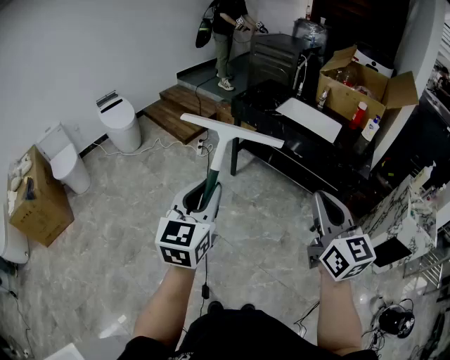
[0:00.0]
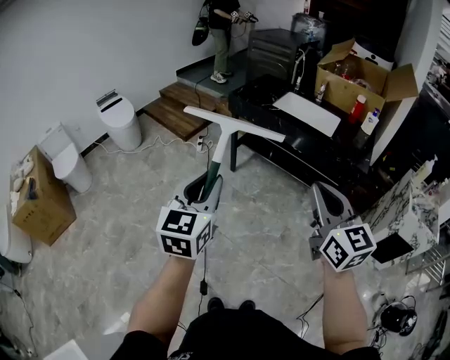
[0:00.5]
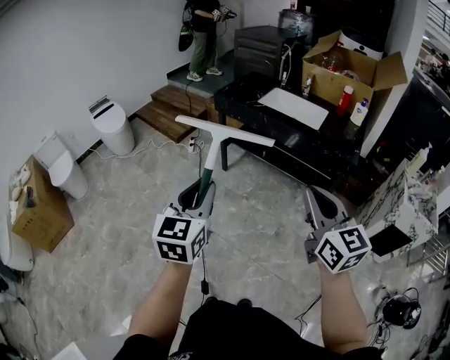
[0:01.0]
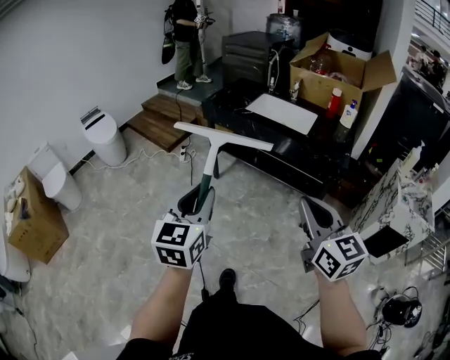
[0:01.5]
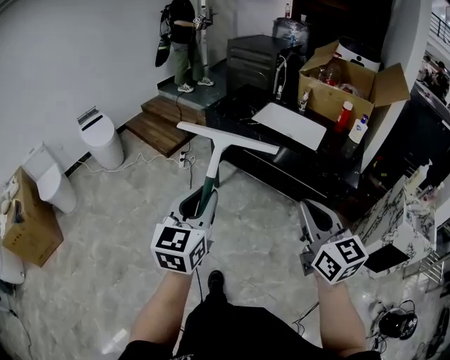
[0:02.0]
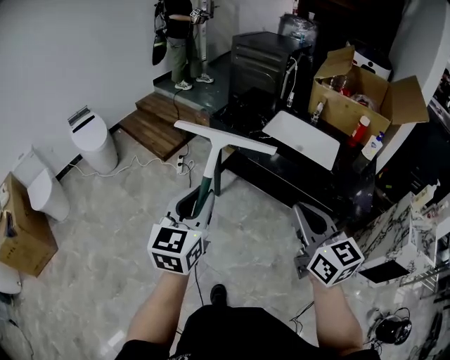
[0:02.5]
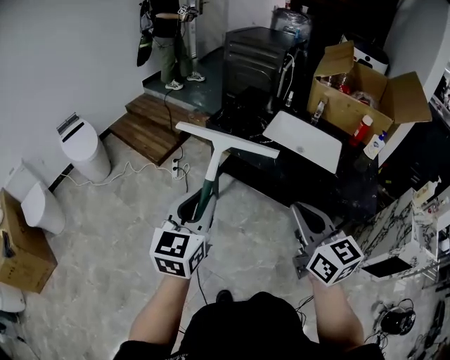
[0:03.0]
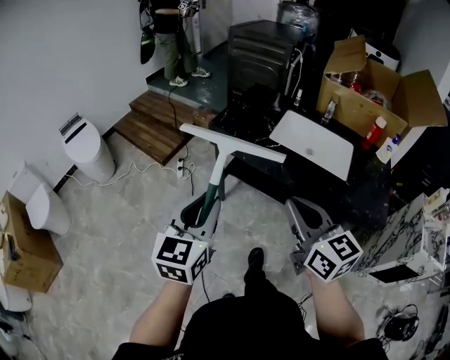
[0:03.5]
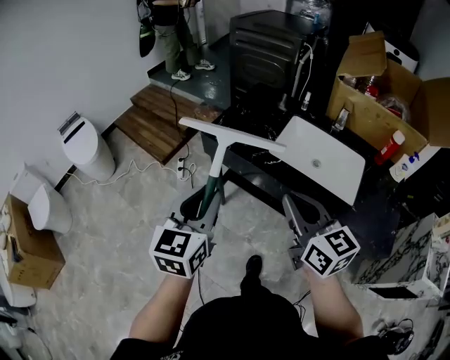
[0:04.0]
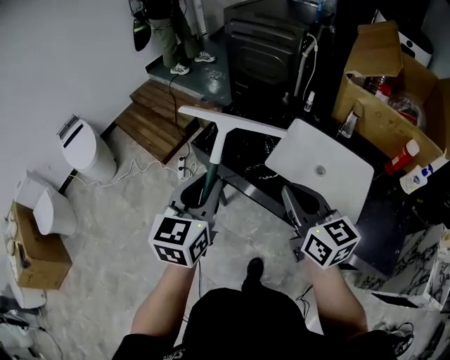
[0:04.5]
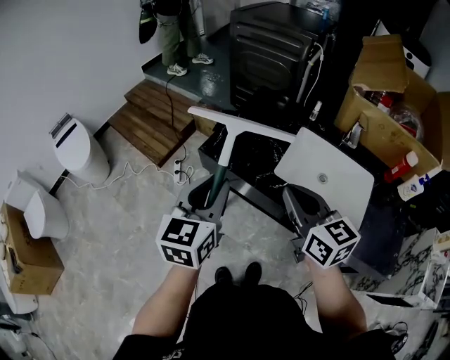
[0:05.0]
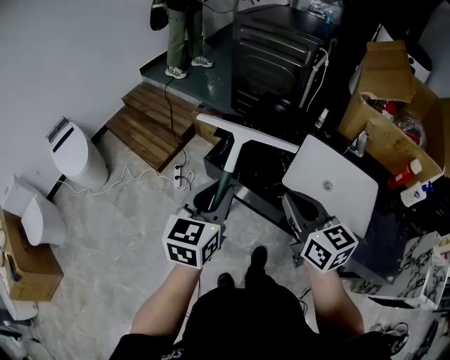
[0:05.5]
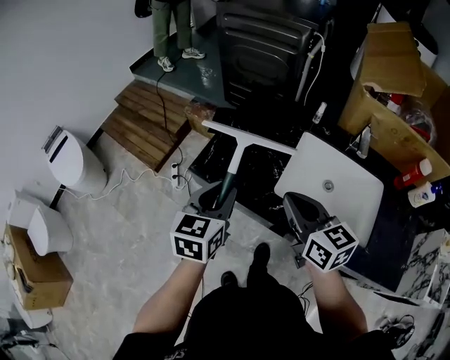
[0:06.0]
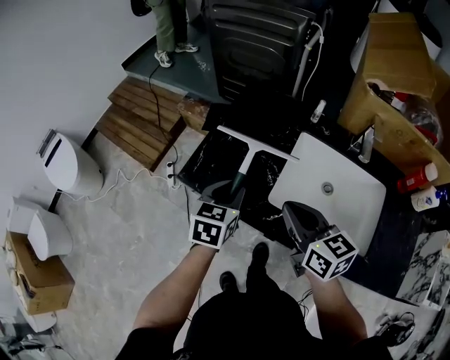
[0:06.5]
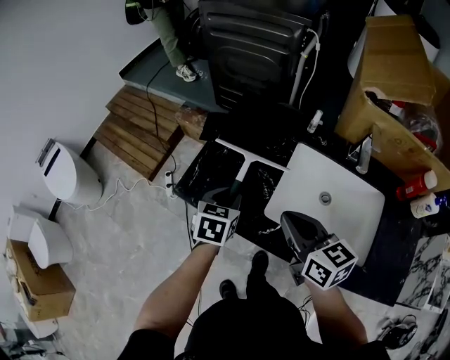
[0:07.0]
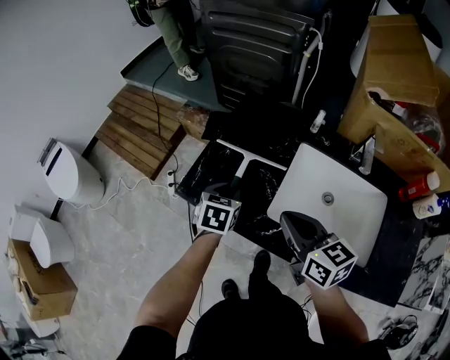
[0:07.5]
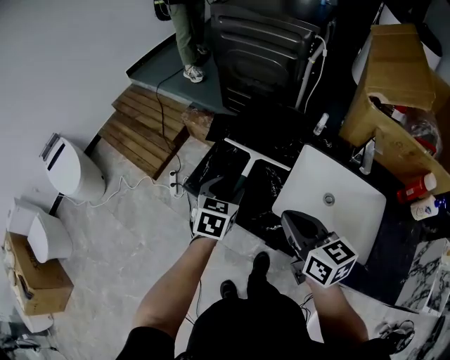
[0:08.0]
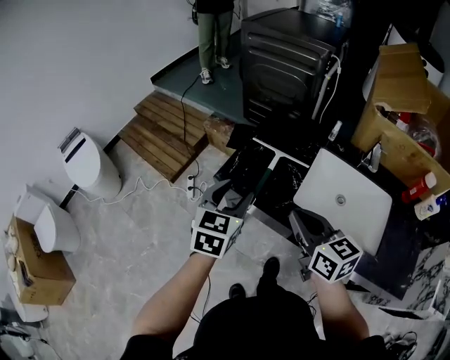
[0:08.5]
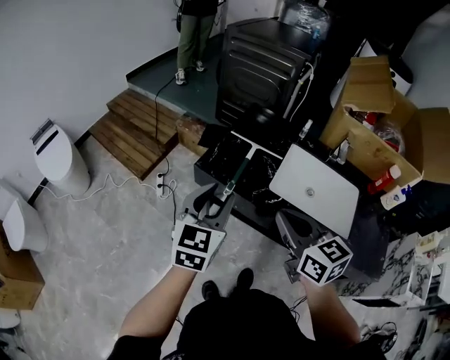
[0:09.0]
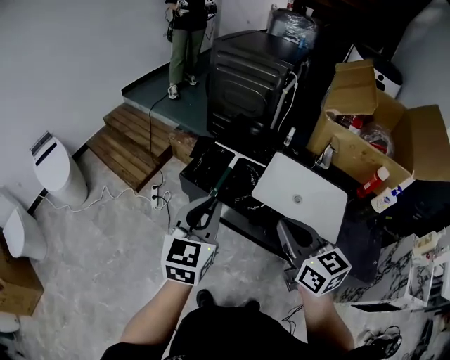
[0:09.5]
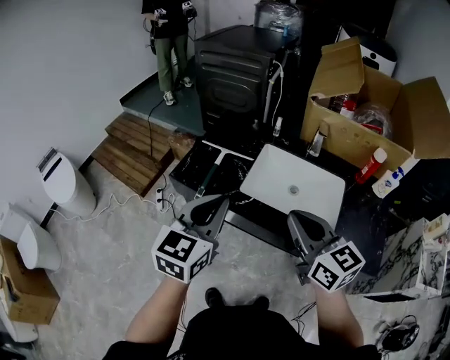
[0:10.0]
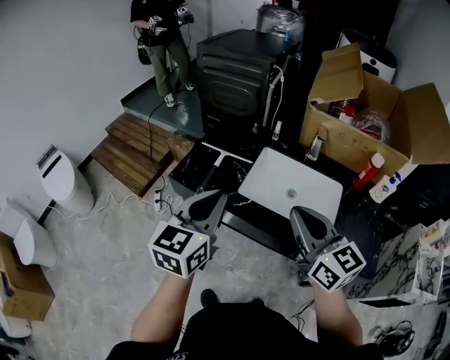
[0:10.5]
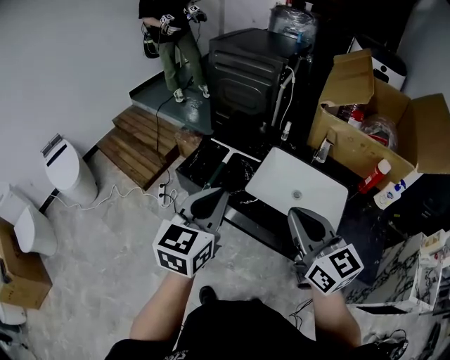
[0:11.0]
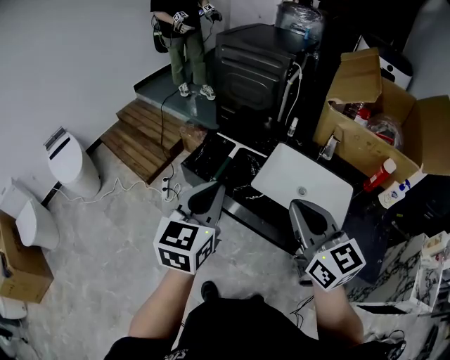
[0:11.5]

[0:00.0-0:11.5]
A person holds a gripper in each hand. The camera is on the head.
0.0 to 2.0 s: The left gripper goes approximately 15 cm to the right and forward; the right gripper travels forward and to the right by about 10 cm.
2.0 to 4.0 s: The pair of grippers is taken forward, approximately 40 cm.
4.0 to 6.0 s: The grippers both shift forward by some 25 cm.
6.0 to 7.5 s: The right gripper changes place by roughly 5 cm. Meanwhile the left gripper is displaced downward and forward by about 20 cm, and rotates approximately 20 degrees.
7.5 to 9.5 s: The left gripper moves upward and backward, about 35 cm, tilts its fingers some 40 degrees upward, and opens and closes again, while the right gripper is displaced backward and upward by some 20 cm.
9.5 to 11.5 s: The right gripper travels upward by some 5 cm.

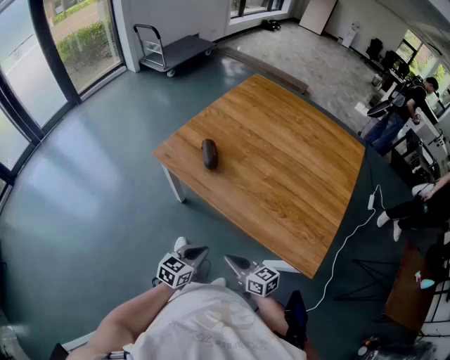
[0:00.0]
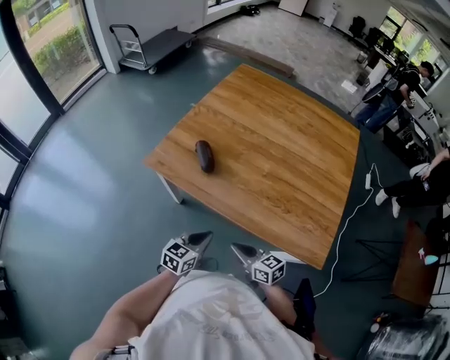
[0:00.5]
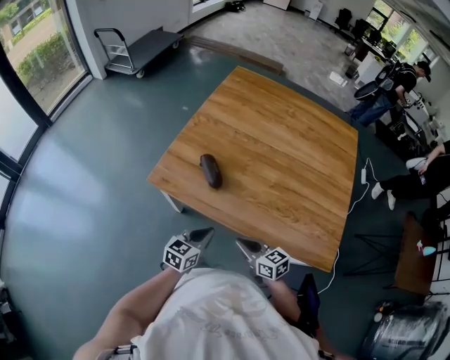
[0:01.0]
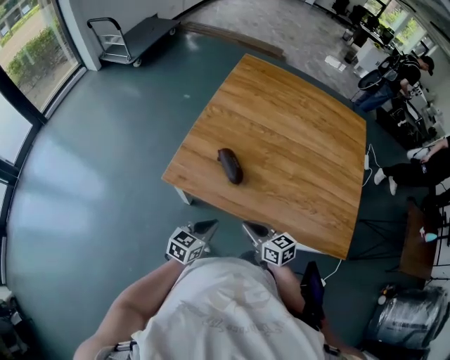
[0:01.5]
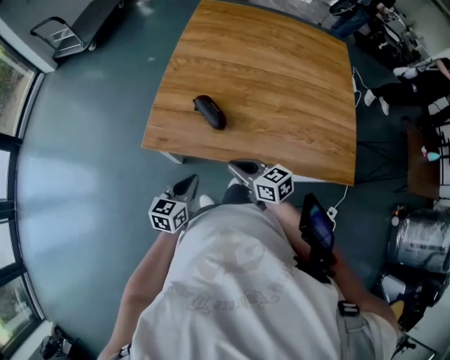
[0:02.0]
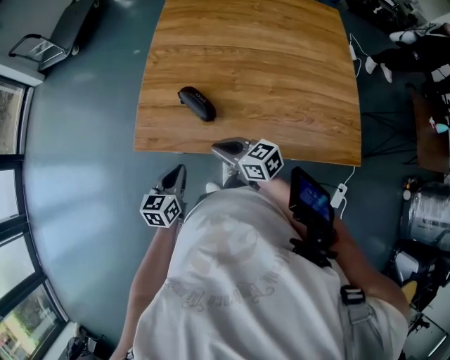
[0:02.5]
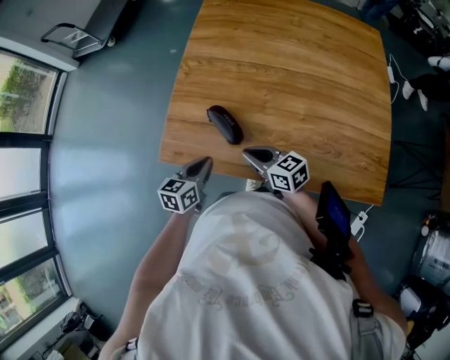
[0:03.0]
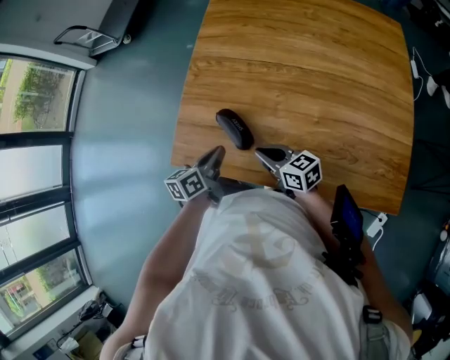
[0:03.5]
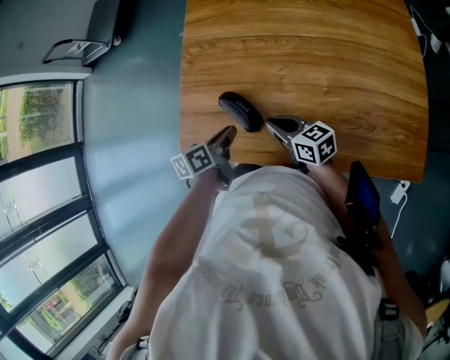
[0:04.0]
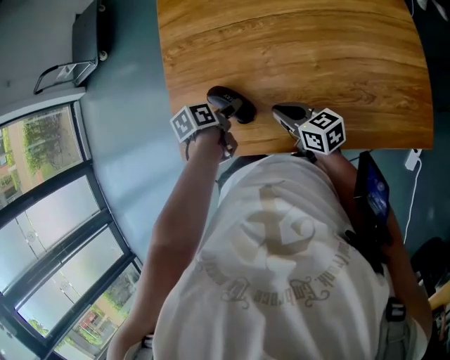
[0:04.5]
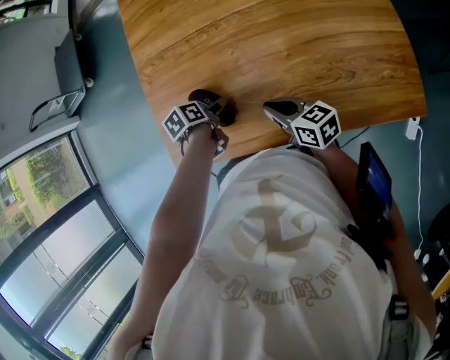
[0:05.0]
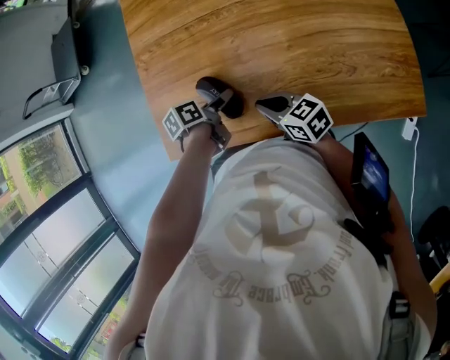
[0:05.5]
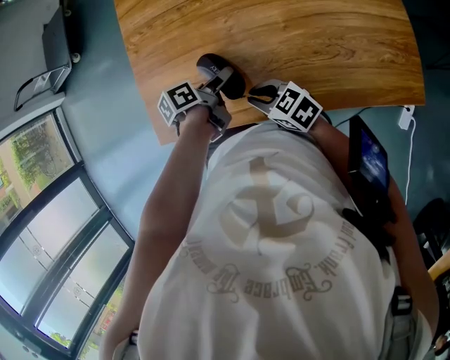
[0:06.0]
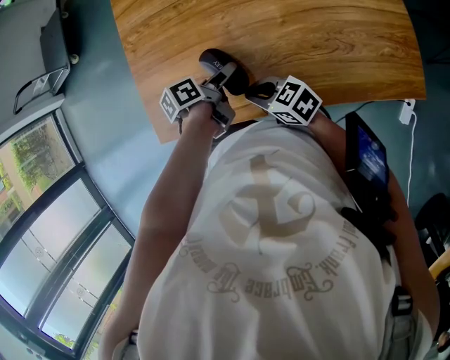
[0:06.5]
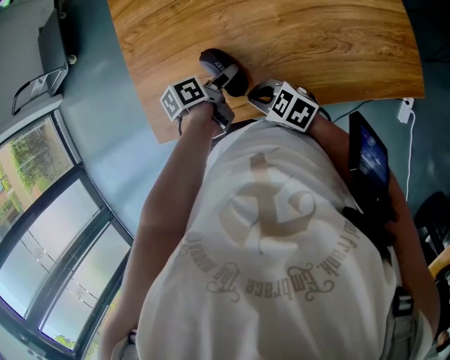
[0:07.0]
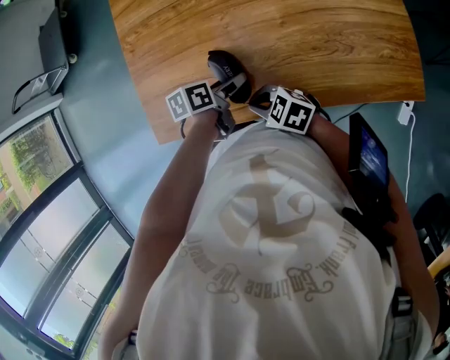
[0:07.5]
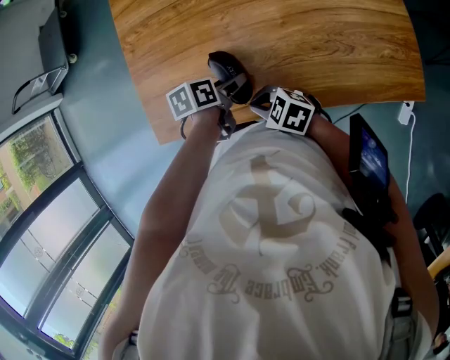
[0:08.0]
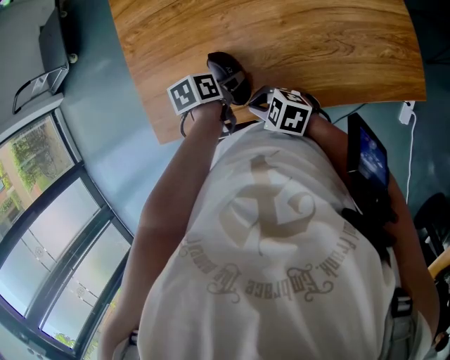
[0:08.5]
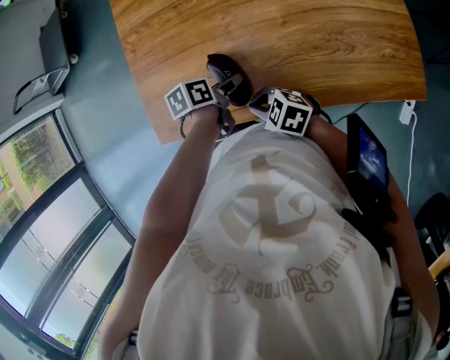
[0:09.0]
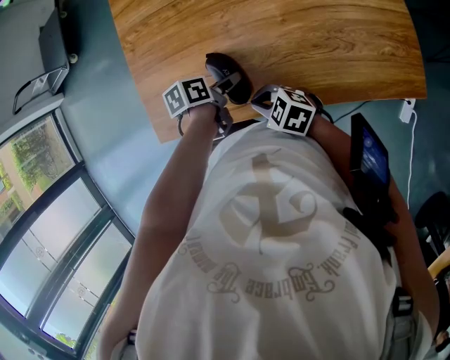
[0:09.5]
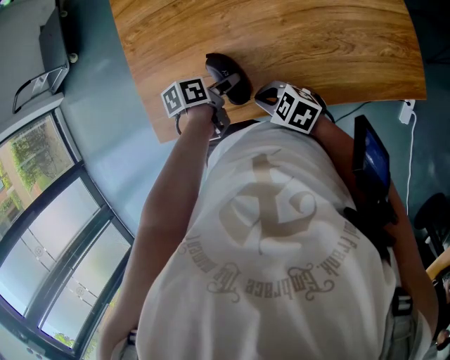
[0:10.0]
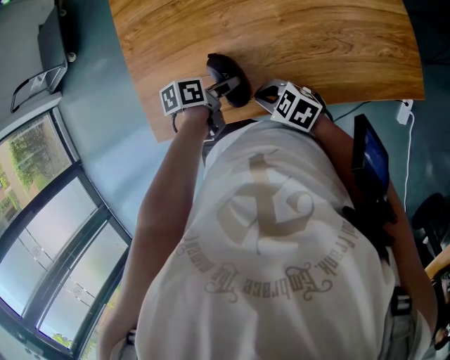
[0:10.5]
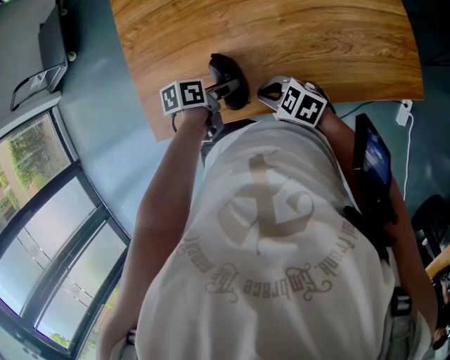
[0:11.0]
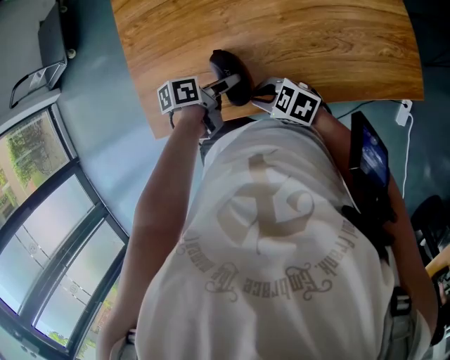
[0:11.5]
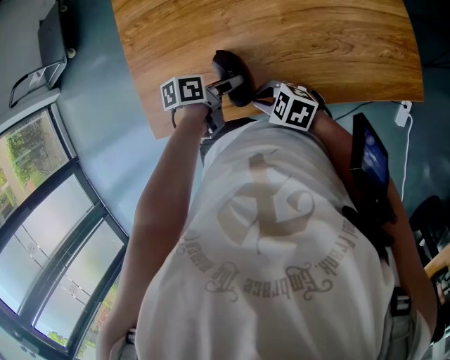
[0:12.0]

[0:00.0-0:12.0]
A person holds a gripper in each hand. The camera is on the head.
0.0 to 2.0 s: The right gripper moves forward and to the left, approximately 30 cm. The left gripper is displaced to the left and forward by roughly 30 cm.
2.0 to 4.0 s: The left gripper moves forward, approximately 20 cm, and changes its angle by roughly 30 degrees. The right gripper is displaced forward and to the right by approximately 15 cm.
4.0 to 6.0 s: The right gripper goes about 5 cm backward. The left gripper moves to the right, roughly 10 cm, and opens.
6.0 to 8.0 s: The left gripper changes its angle by about 30 degrees.
8.0 to 12.0 s: The grippers move only a little.

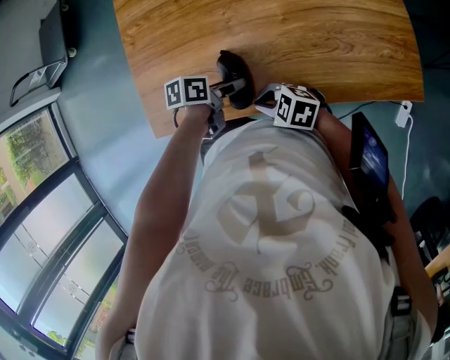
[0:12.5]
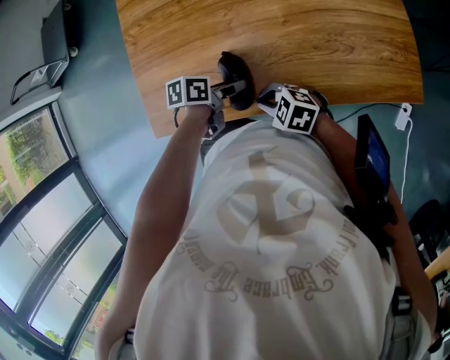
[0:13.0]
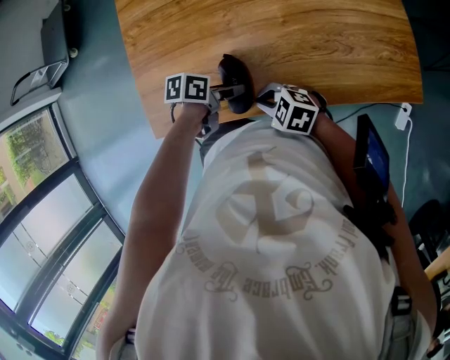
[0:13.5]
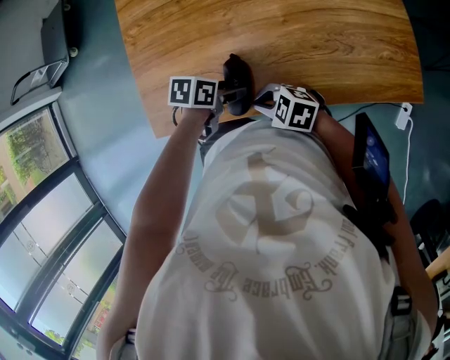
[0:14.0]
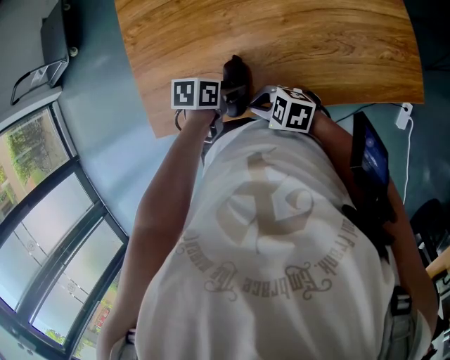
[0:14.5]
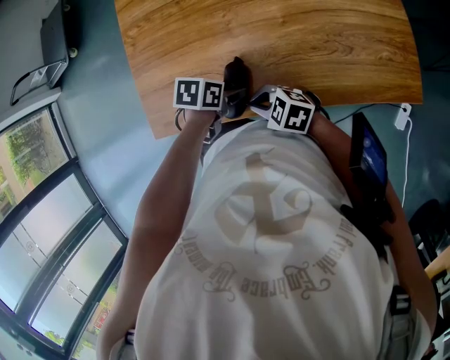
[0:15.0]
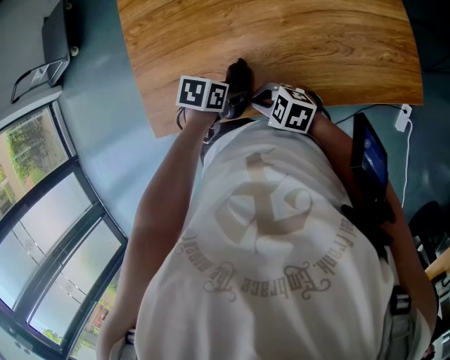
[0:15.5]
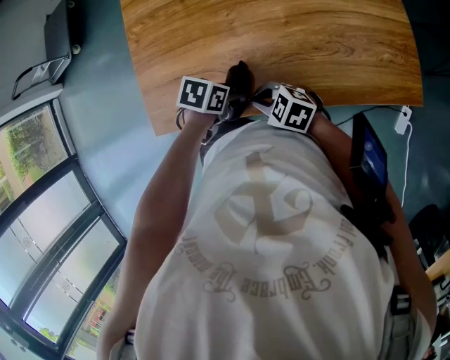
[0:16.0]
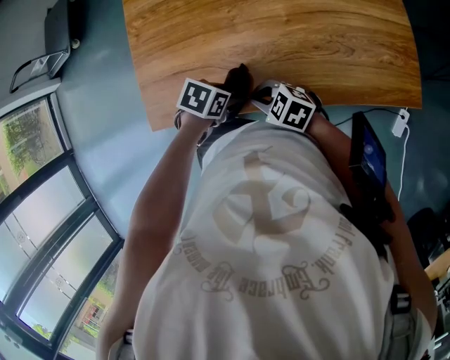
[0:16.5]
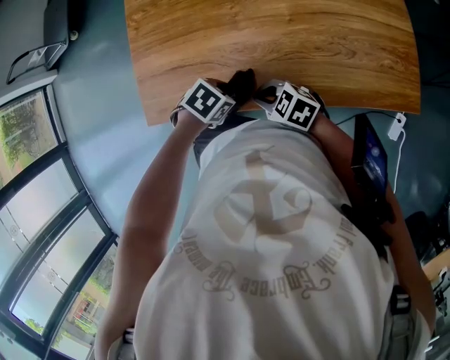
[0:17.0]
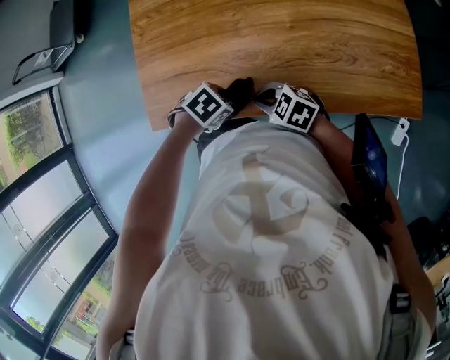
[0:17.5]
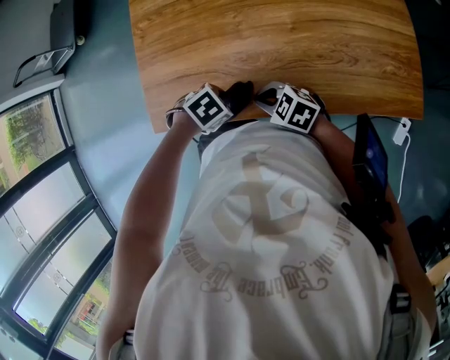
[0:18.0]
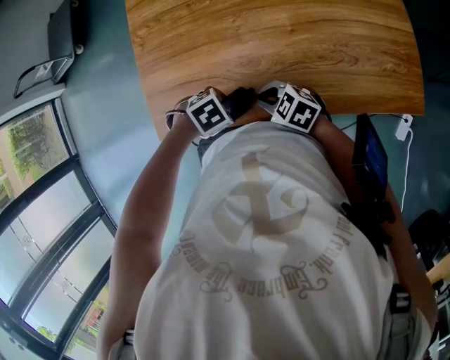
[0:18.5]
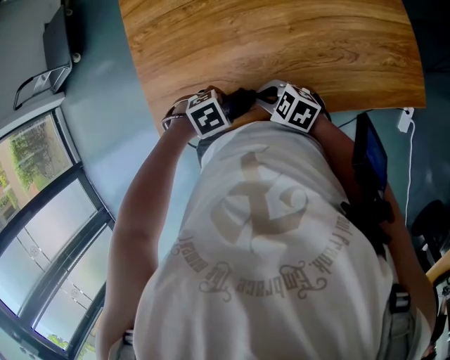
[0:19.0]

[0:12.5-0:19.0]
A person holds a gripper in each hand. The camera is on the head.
14.5 to 17.0 s: The left gripper moves roughly 5 cm, and turns by approximately 40 degrees.
17.0 to 19.0 s: The left gripper turns by approximately 30 degrees.
